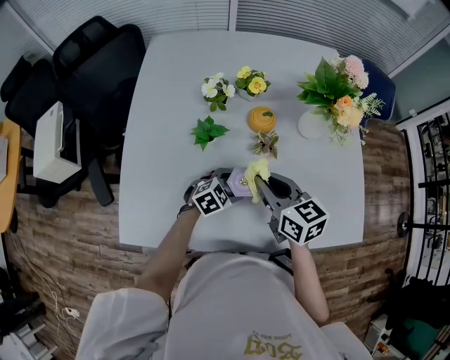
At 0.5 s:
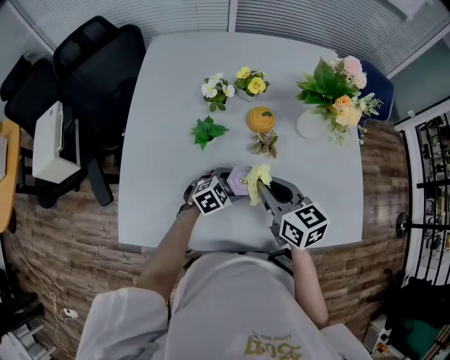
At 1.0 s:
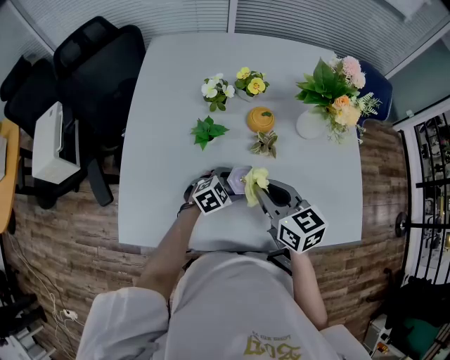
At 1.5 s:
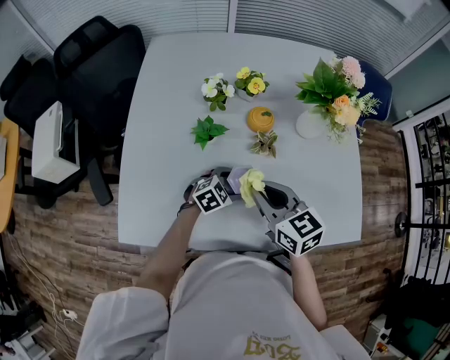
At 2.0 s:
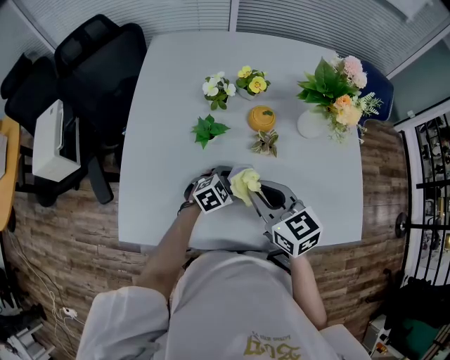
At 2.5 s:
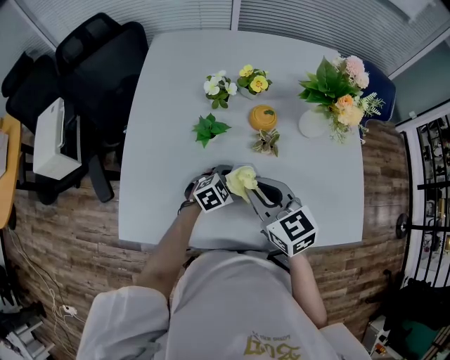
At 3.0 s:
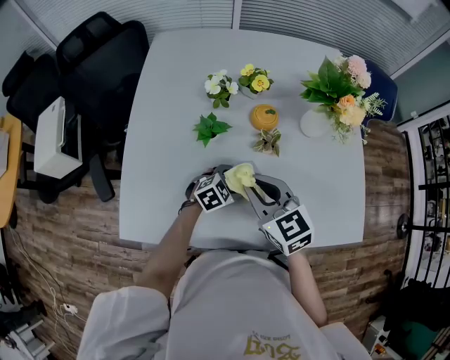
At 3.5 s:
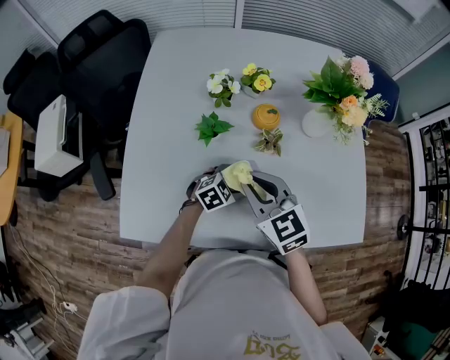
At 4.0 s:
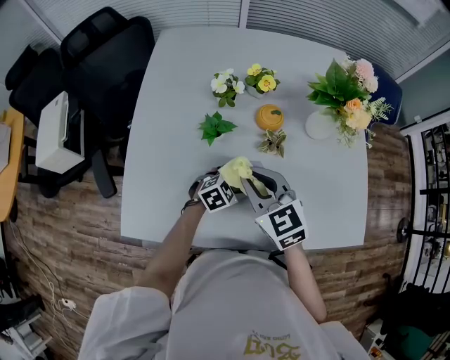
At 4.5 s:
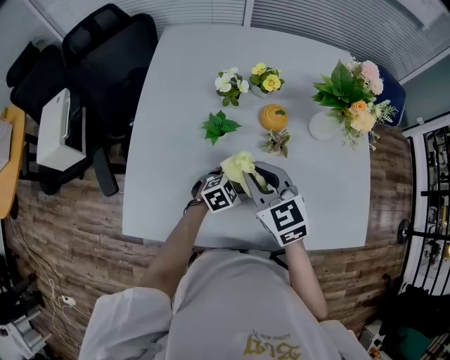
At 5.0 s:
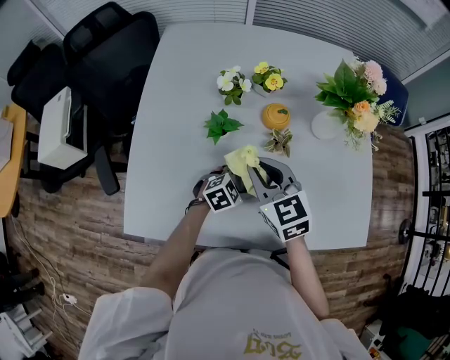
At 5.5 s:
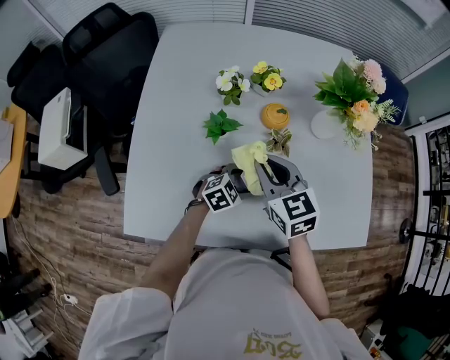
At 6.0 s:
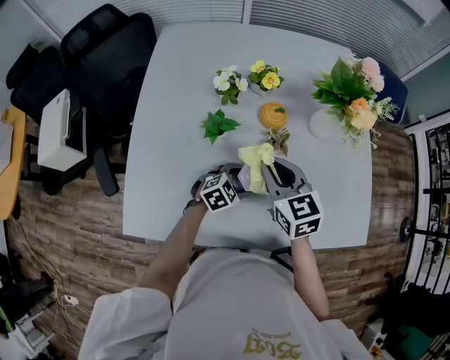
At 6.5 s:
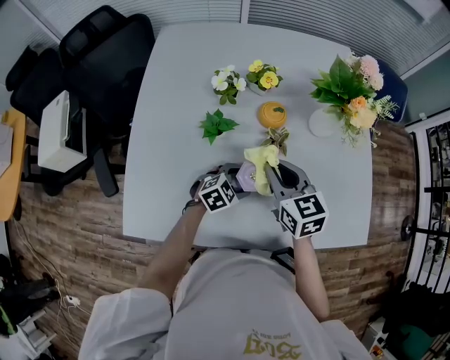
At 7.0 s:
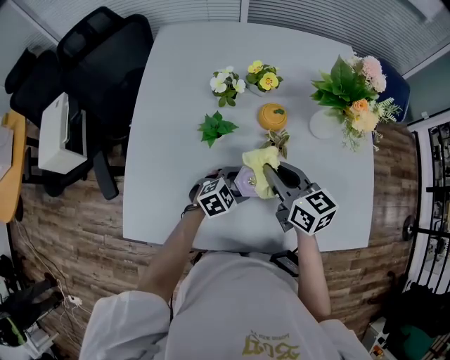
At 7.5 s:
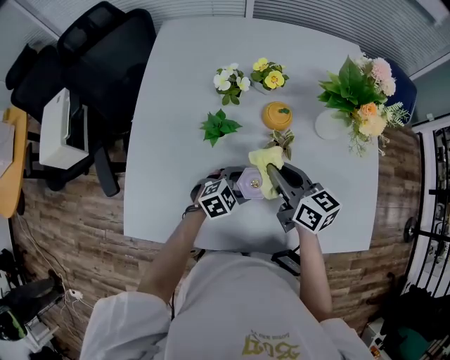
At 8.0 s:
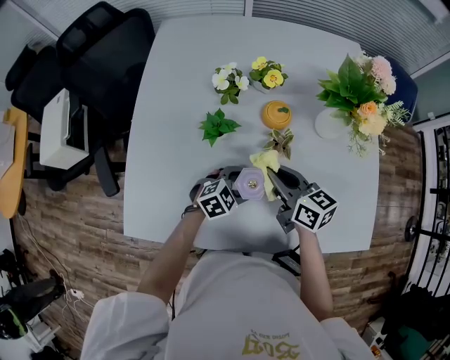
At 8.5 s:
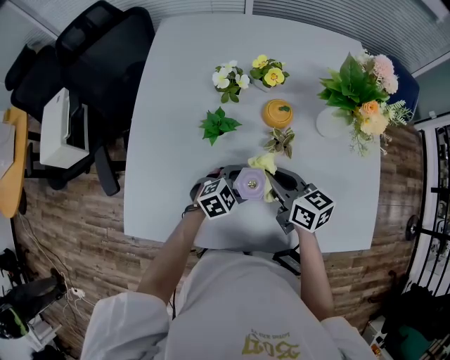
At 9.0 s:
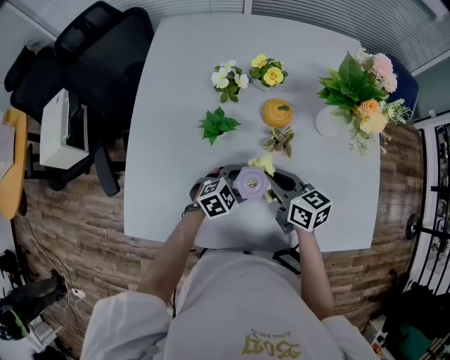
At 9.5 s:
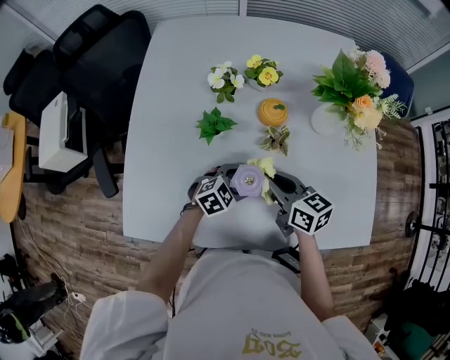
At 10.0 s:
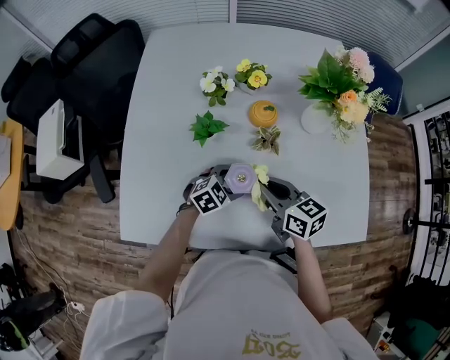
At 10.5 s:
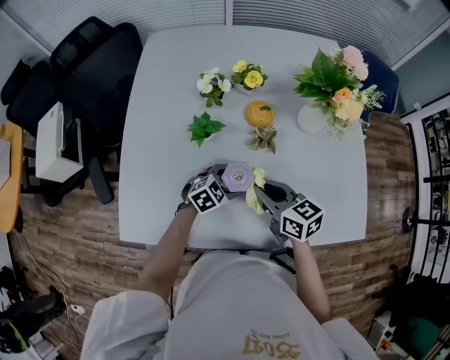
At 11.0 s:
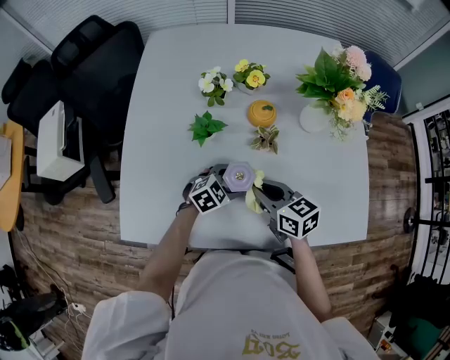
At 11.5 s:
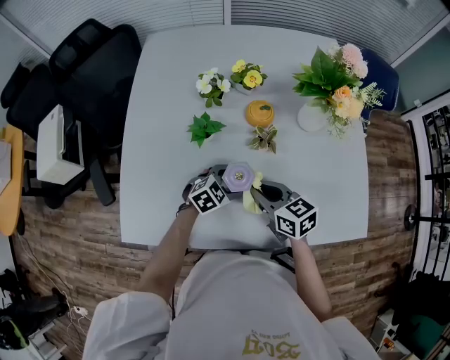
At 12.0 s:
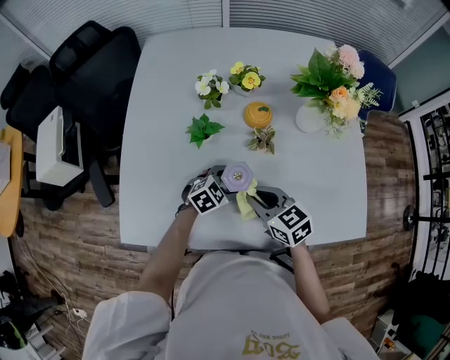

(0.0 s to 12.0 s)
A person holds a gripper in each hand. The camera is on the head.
0.0 s - 2.0 s: The grippers move only a little.
2.0 s - 4.0 s: The grippers make only small movements.
4.0 s - 6.0 s: The right gripper ends up approximately 5 cm from where it was.
6.0 s - 8.0 s: The right gripper travels downward by approximately 5 cm, and swivels approximately 30 degrees.
8.0 s - 10.0 s: The right gripper moves roughly 5 cm.
10.0 s - 12.0 s: The grippers make only small movements.

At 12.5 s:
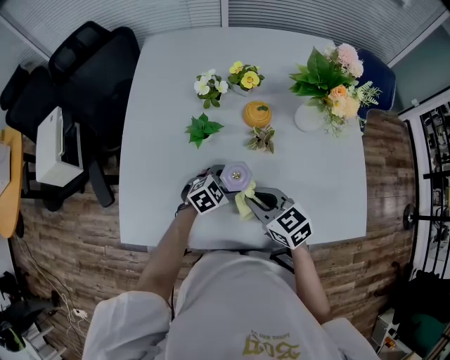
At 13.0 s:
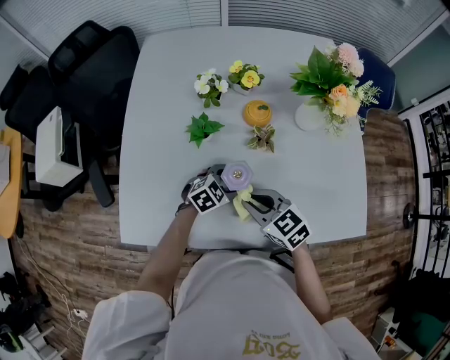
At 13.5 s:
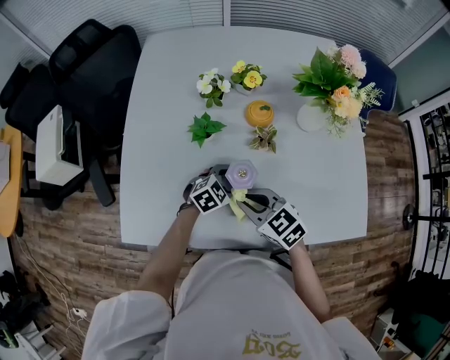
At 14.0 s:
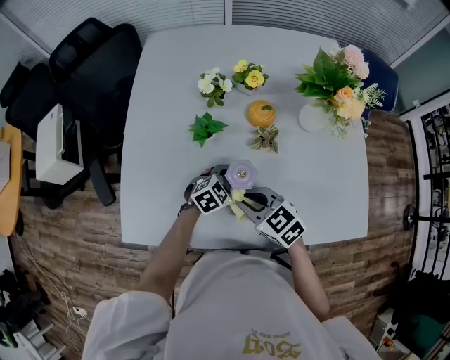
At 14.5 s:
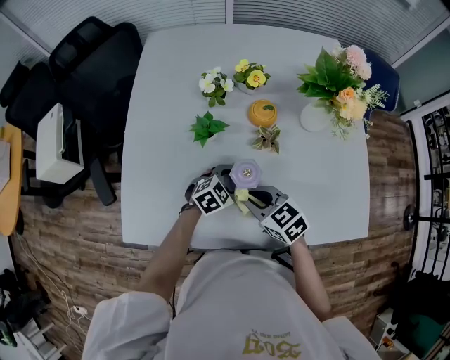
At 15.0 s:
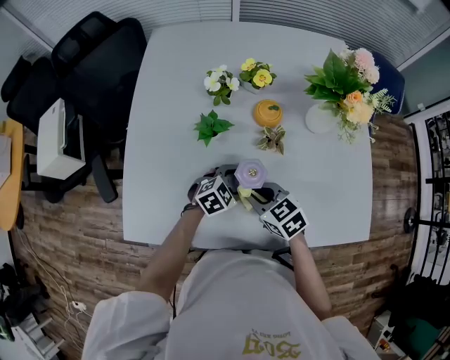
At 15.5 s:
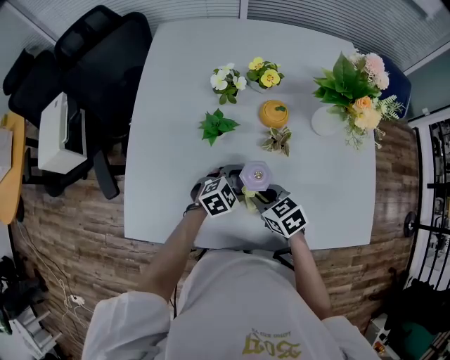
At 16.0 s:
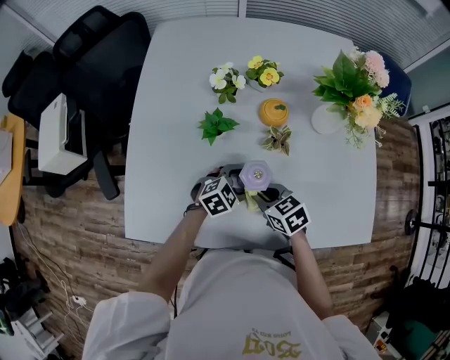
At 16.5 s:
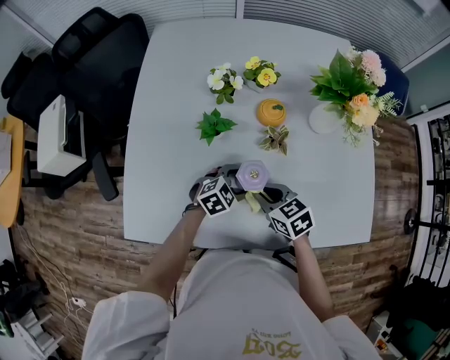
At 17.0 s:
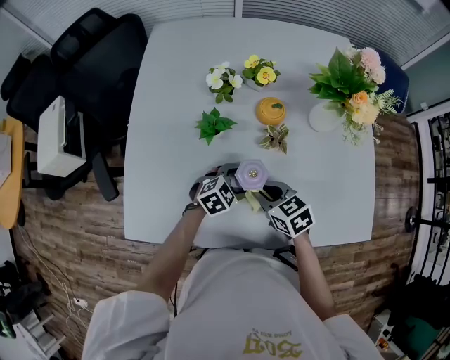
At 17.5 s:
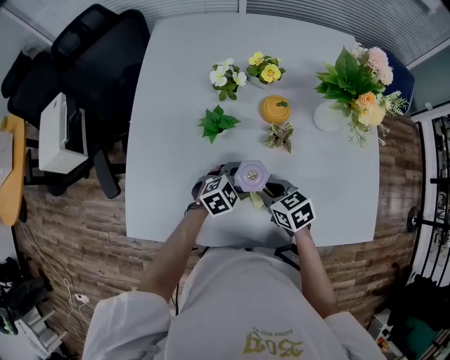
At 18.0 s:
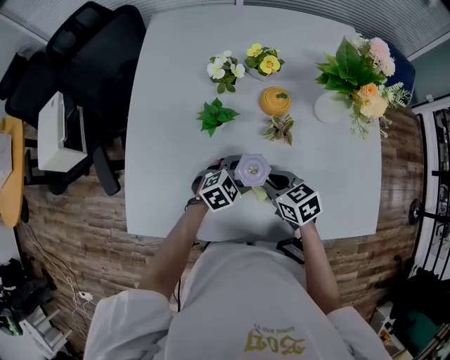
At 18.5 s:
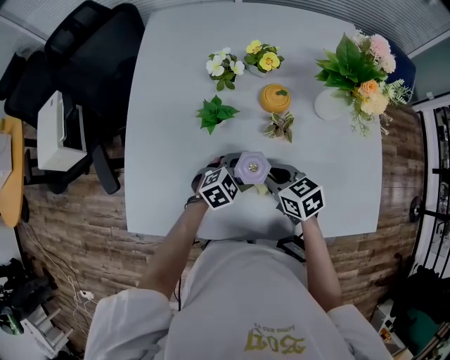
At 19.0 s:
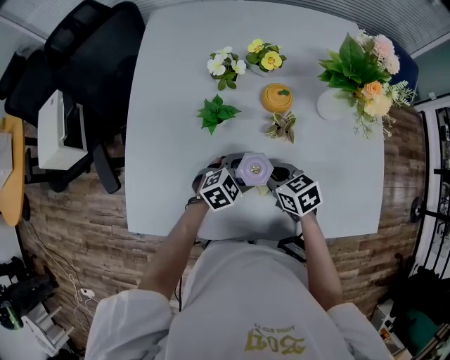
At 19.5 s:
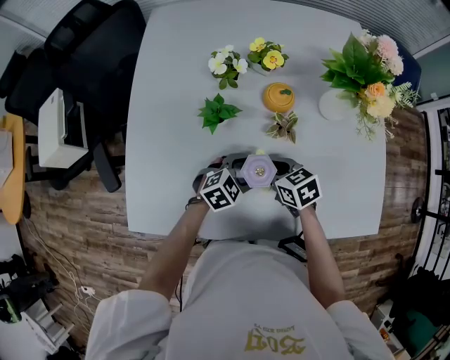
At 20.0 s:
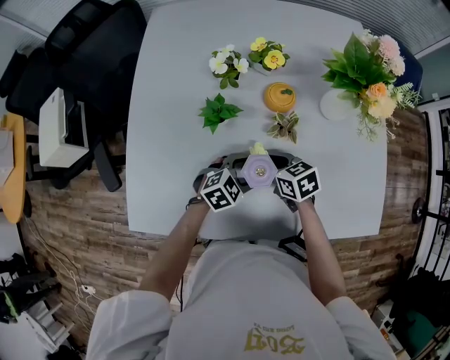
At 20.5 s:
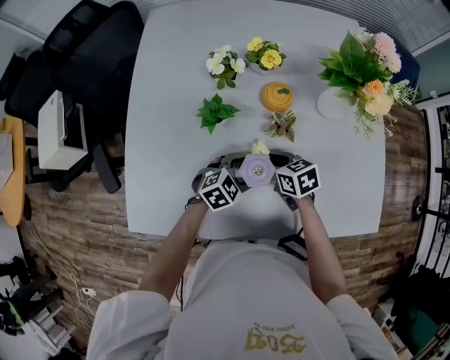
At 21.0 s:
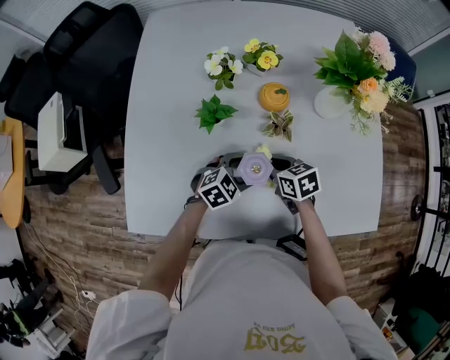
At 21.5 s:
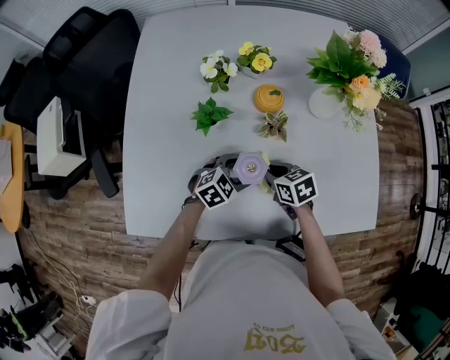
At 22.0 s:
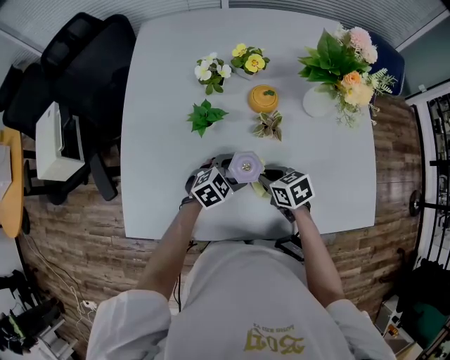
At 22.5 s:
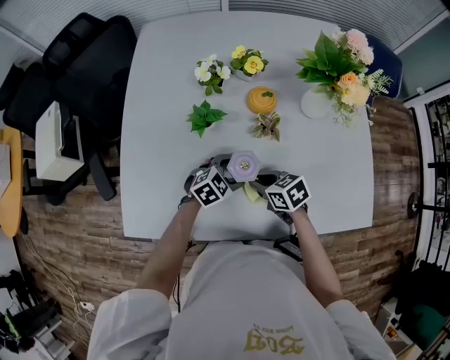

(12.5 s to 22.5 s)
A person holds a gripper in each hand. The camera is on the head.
12.5 s - 14.5 s: The grippers make only small movements.
16.5 s - 18.5 s: There are only small adjustments of the grippers.
18.5 s - 20.5 s: The right gripper shifts by about 5 cm.
20.5 s - 22.5 s: The right gripper ends up some 5 cm from where it was.

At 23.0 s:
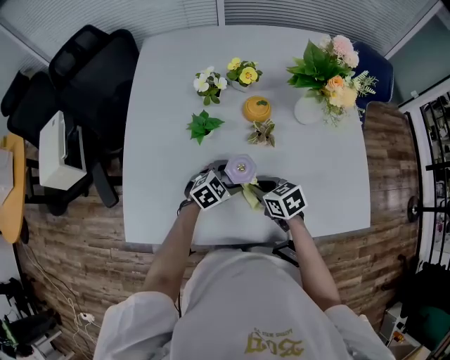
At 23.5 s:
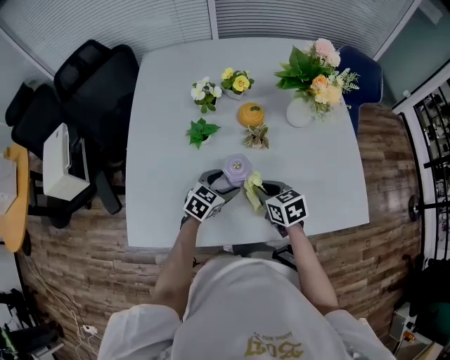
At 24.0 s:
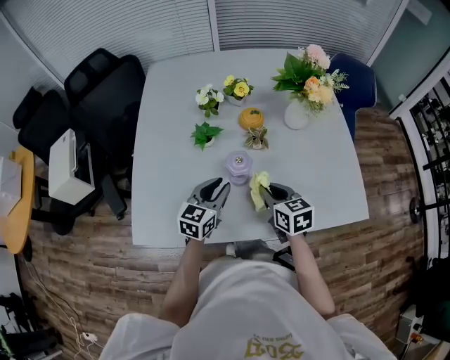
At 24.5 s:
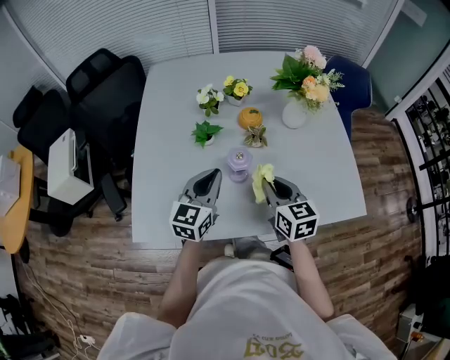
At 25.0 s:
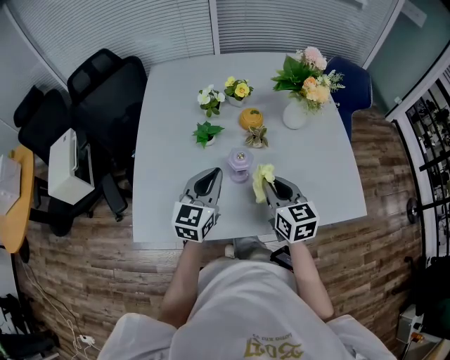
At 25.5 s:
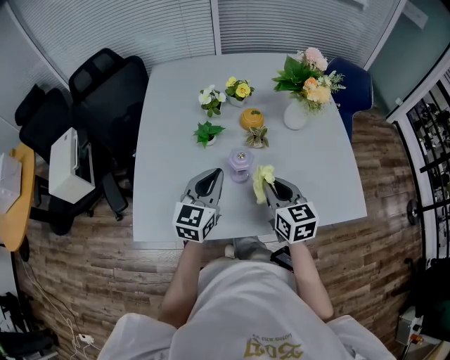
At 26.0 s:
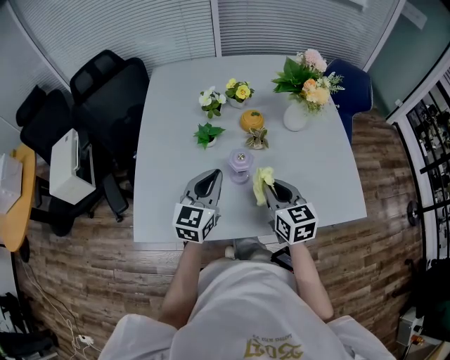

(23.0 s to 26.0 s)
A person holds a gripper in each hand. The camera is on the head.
23.0 s - 24.5 s: Both grippers travel together upward, roughly 20 cm. The right gripper changes its angle by some 40 degrees; the left gripper tips its fingers upward by approximately 40 degrees, and closes.
24.5 s - 26.0 s: Both grippers stay put.

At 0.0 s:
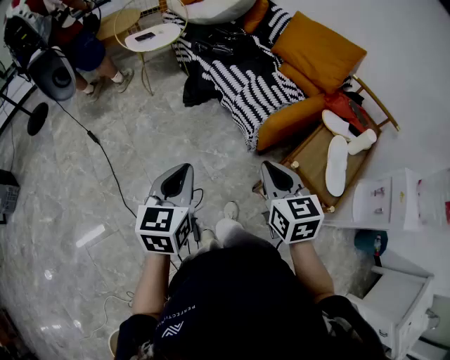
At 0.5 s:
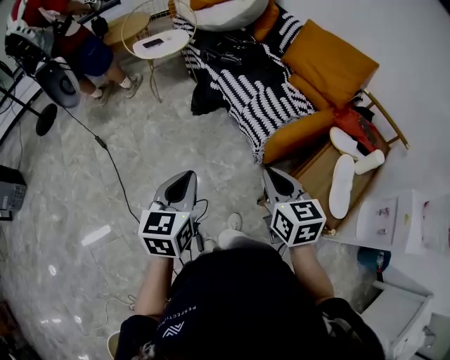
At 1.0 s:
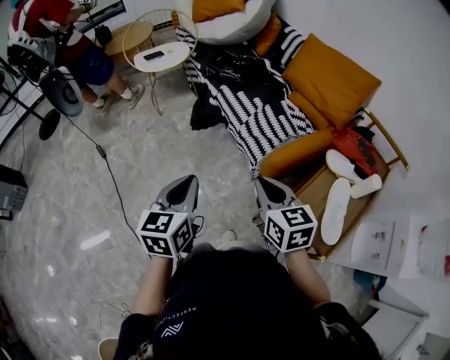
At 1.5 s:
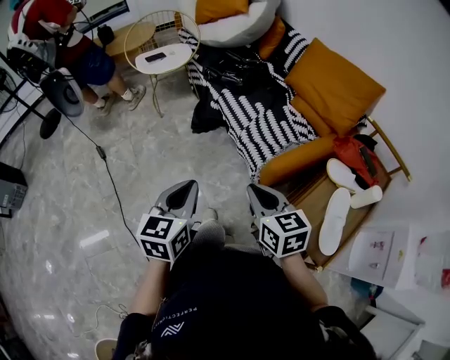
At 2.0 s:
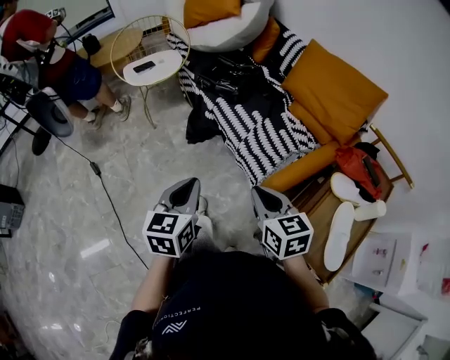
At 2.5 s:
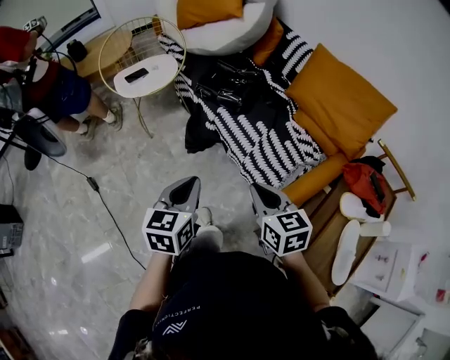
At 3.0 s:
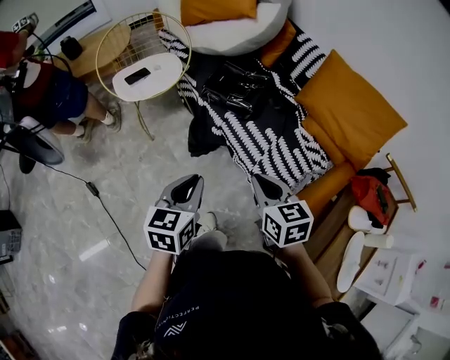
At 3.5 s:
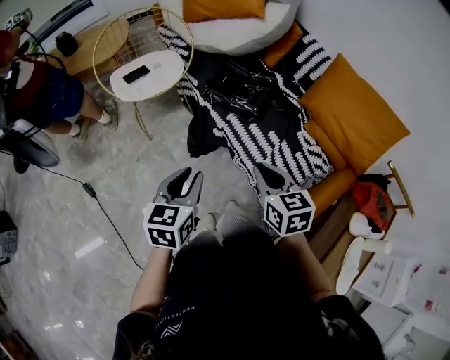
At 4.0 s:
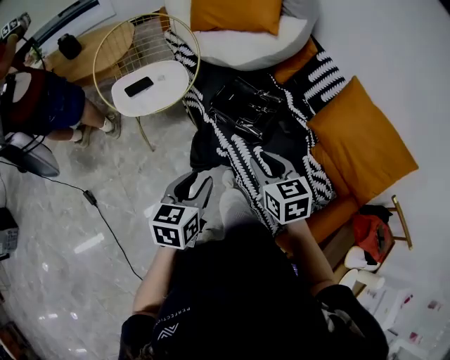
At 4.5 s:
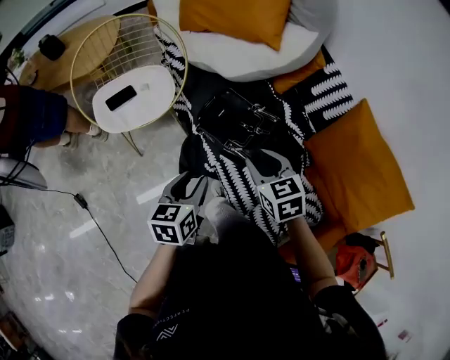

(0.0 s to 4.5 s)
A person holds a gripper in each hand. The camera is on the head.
0.0 s - 2.0 s: The grippers both shift forward by some 20 cm.
2.0 s - 4.5 s: The pair of grippers is taken forward, some 60 cm. The right gripper rotates approximately 20 degrees, and opens. The left gripper opens up.
